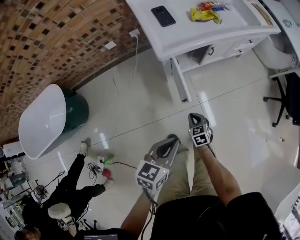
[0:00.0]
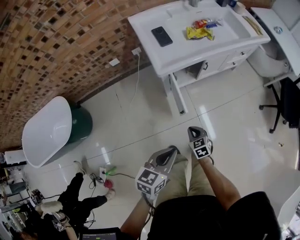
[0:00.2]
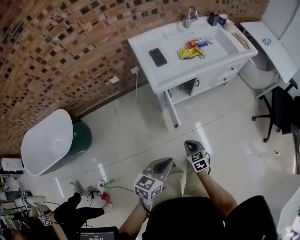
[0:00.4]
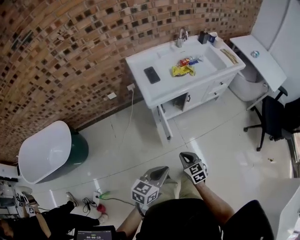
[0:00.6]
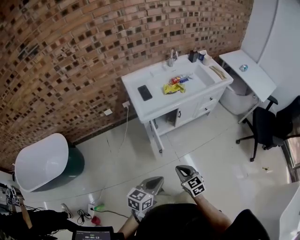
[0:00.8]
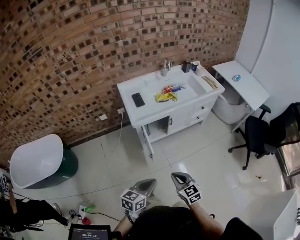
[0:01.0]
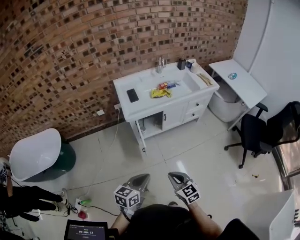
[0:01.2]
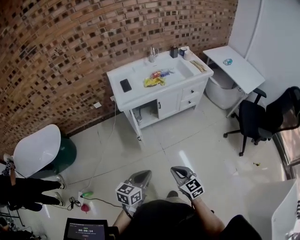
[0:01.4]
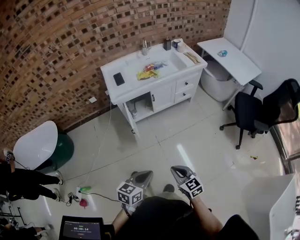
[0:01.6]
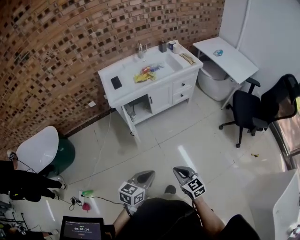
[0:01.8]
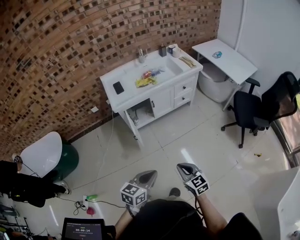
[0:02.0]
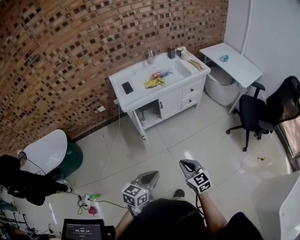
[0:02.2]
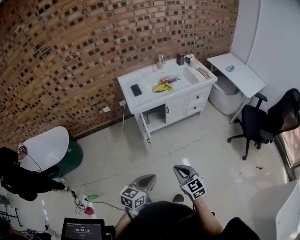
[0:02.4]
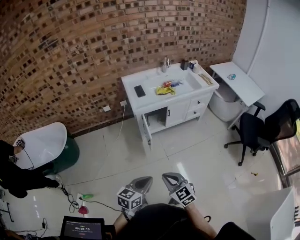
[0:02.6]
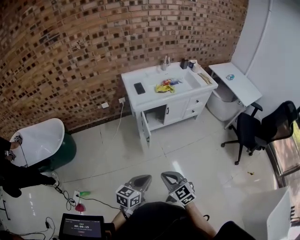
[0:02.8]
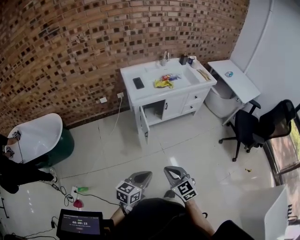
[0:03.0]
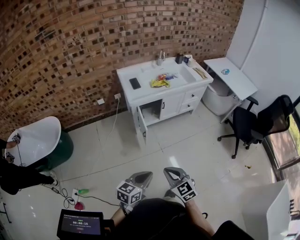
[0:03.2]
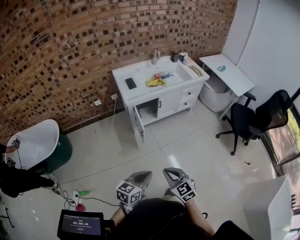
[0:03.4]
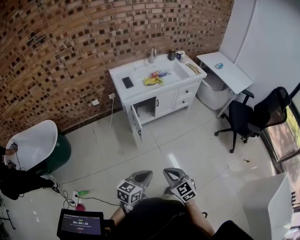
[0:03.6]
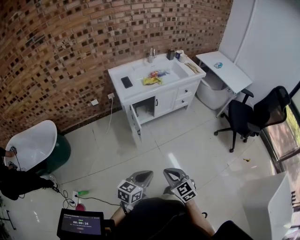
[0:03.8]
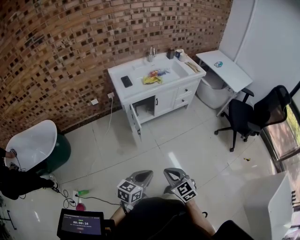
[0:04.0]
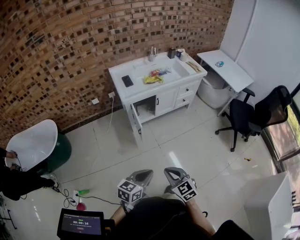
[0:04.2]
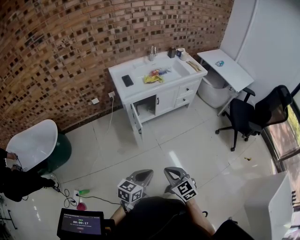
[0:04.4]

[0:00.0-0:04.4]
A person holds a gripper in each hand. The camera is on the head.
0.0 to 1.4 s: The left gripper goes some 30 cm to the right, upward and backward. The right gripper is displaced upward, to the right and backward by roughly 50 cm, and swivels roughly 30 degrees.
1.4 to 3.0 s: The left gripper travels backward and to the left by approximately 15 cm. The right gripper travels to the left, backward and upward by some 15 cm.
3.0 to 4.4 s: There are only small adjustments of the grippers.

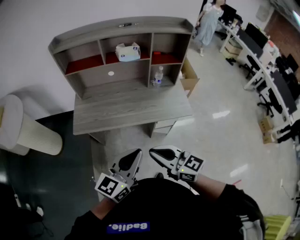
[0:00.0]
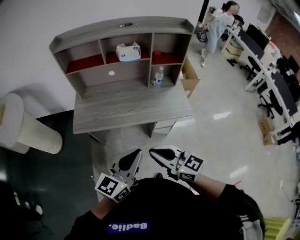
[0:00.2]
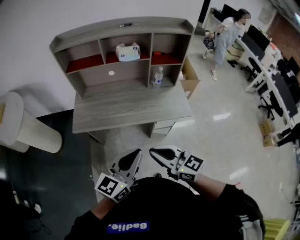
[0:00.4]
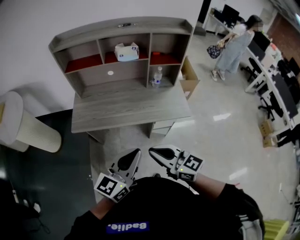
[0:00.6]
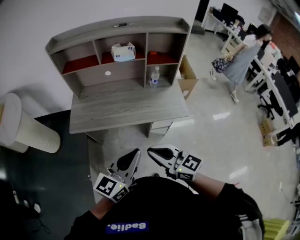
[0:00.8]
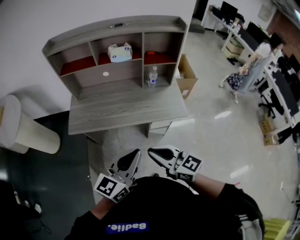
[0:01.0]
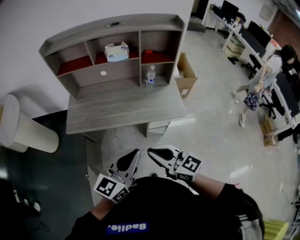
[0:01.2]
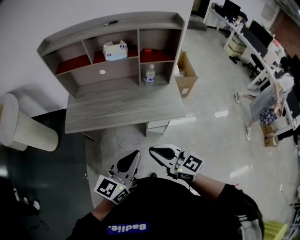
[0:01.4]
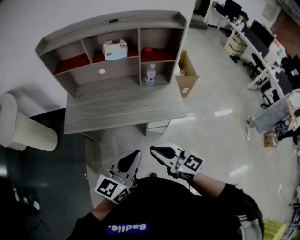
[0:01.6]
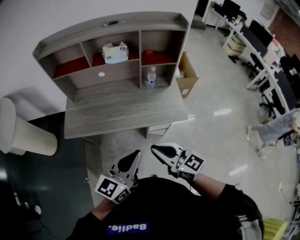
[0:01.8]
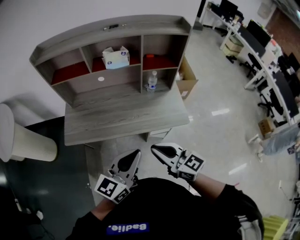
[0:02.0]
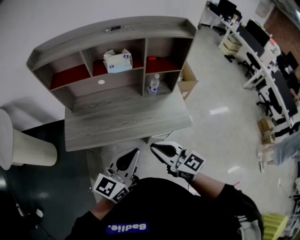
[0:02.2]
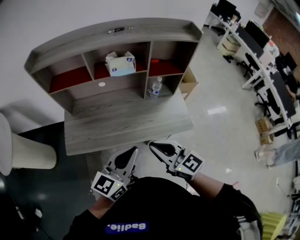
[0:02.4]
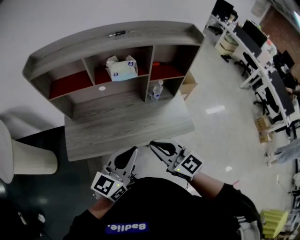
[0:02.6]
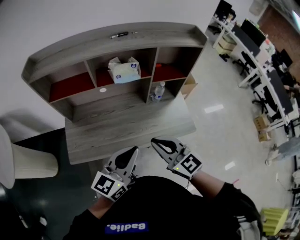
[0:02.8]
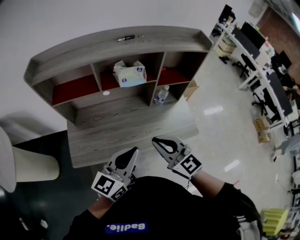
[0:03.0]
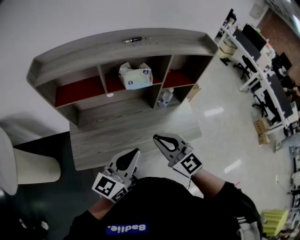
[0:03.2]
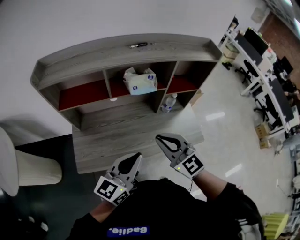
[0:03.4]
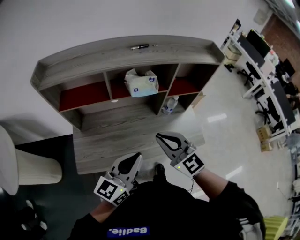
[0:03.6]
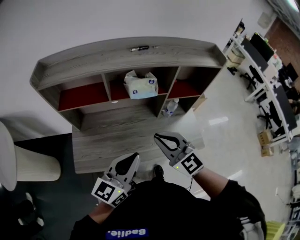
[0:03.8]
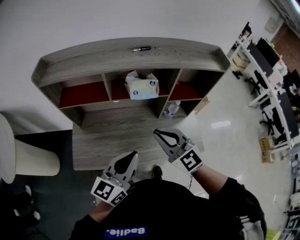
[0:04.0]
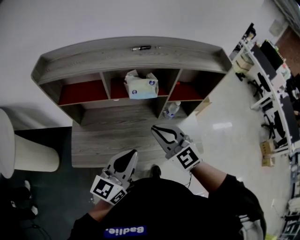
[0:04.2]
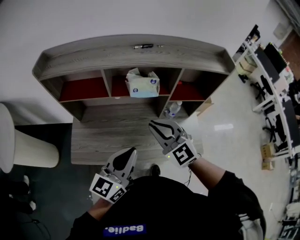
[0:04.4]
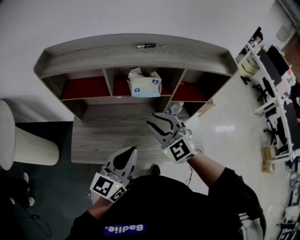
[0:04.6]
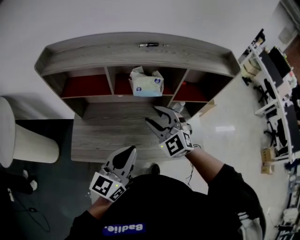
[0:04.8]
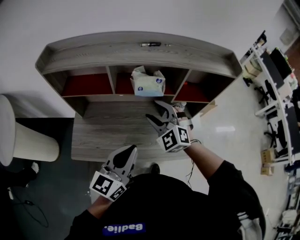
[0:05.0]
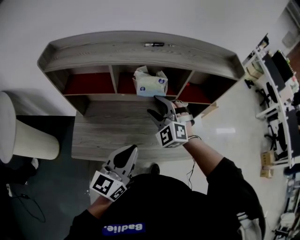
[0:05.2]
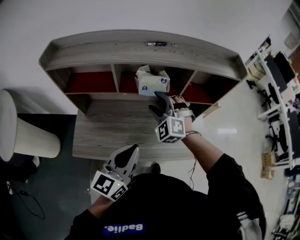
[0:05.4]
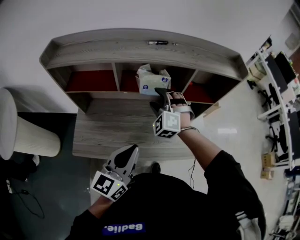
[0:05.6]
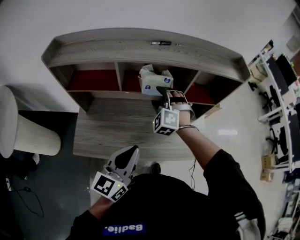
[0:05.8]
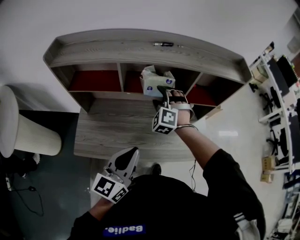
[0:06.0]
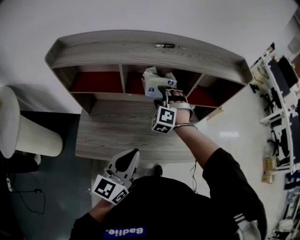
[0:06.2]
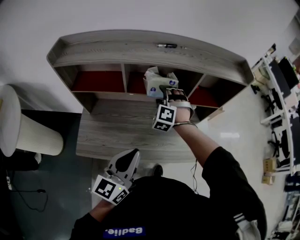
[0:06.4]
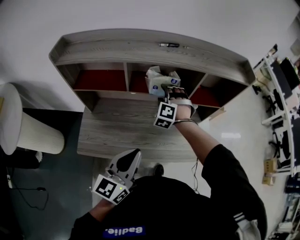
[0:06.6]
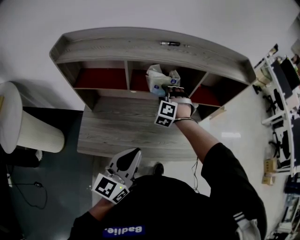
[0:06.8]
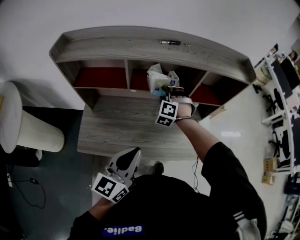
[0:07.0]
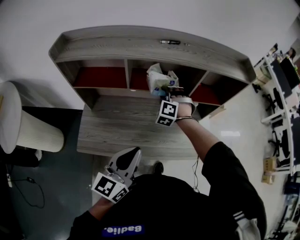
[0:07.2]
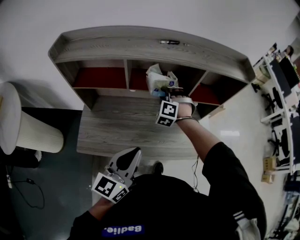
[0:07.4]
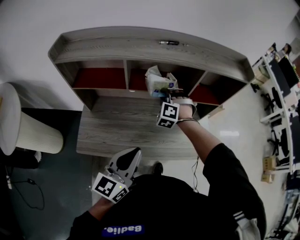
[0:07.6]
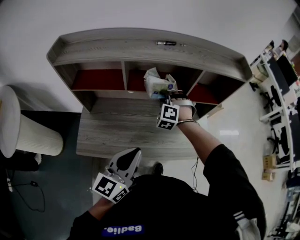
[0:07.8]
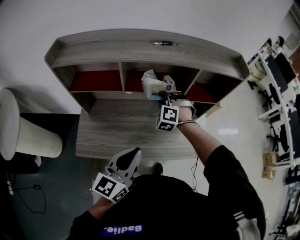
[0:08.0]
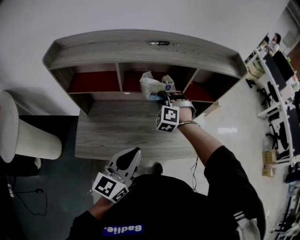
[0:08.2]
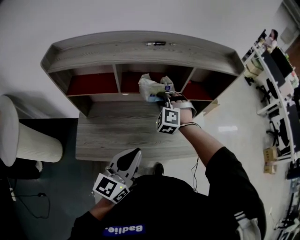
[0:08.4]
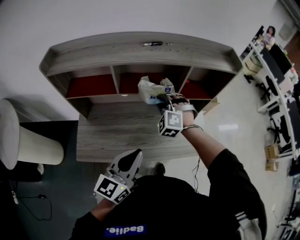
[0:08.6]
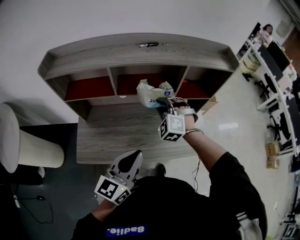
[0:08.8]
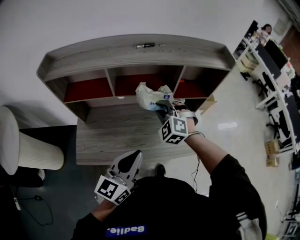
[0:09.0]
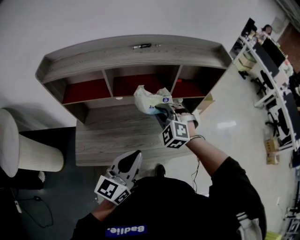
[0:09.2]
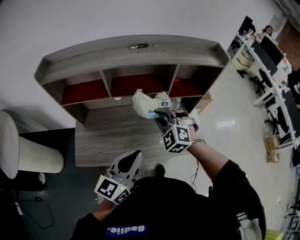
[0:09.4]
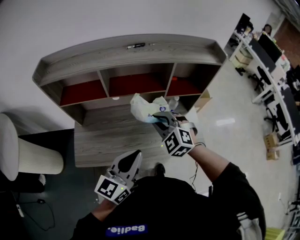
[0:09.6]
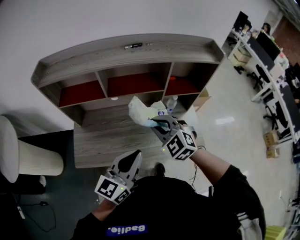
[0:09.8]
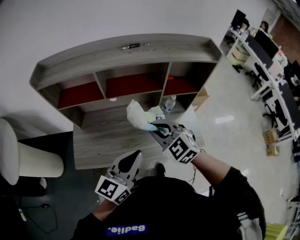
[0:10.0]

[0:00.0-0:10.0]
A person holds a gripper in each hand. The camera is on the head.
0.0 to 1.4 s: Both grippers move to the right, about 10 cm.
1.4 to 2.8 s: The right gripper shifts about 20 cm forward, and swivels about 20 degrees. Meanwhile the left gripper shifts roughly 20 cm forward and to the left.
2.8 to 4.2 s: The left gripper shifts roughly 5 cm forward. Meanwhile the right gripper goes some 10 cm forward.
4.2 to 5.8 s: The right gripper travels forward and downward by roughly 20 cm, changes its angle by approximately 50 degrees, and opens its fingers.
5.8 to 7.2 s: The right gripper shifts by some 5 cm, and closes its fingers.
7.2 to 8.6 s: The right gripper moves about 5 cm.
8.6 to 10.0 s: The right gripper moves backward, about 15 cm, and changes its angle by about 40 degrees.

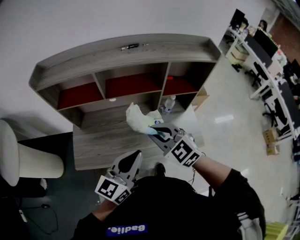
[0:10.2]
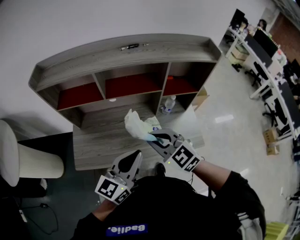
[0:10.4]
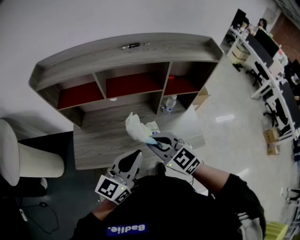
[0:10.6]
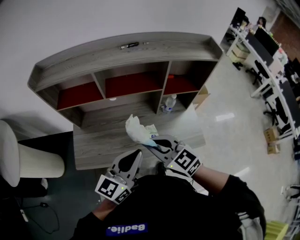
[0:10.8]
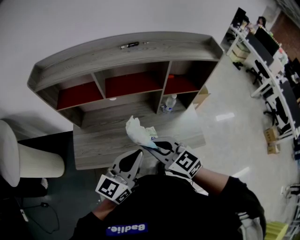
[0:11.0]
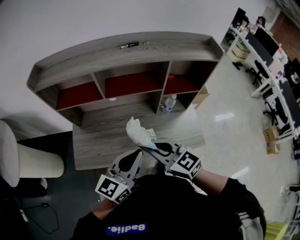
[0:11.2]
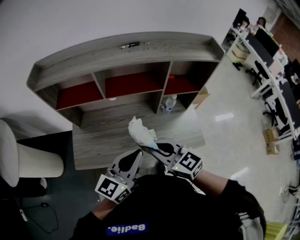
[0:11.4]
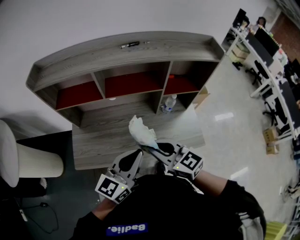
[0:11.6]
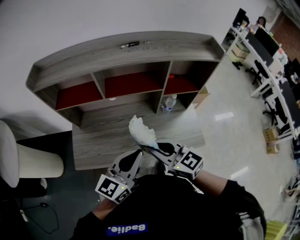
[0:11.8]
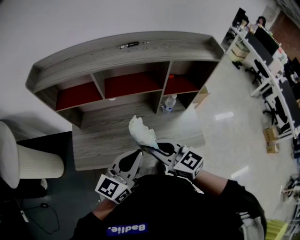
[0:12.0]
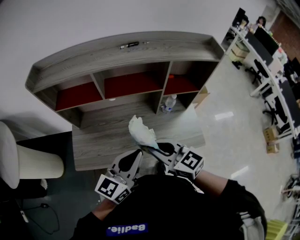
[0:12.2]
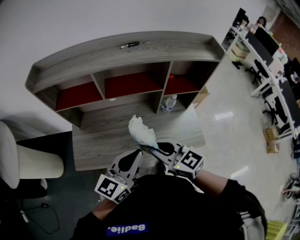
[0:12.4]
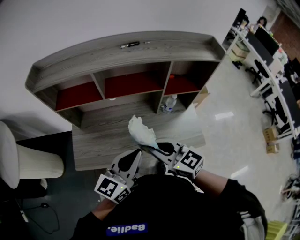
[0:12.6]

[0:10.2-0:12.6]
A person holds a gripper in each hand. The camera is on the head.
10.2 to 11.4 s: The right gripper changes place by some 5 cm, and rotates some 30 degrees.
11.4 to 12.6 s: Both grippers stay put.

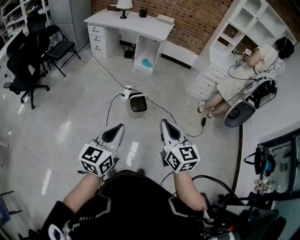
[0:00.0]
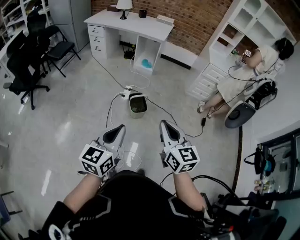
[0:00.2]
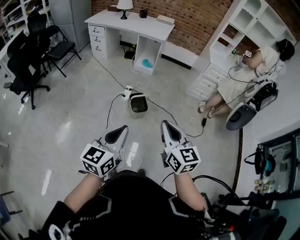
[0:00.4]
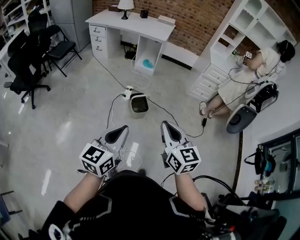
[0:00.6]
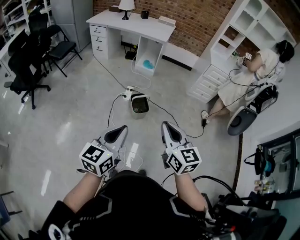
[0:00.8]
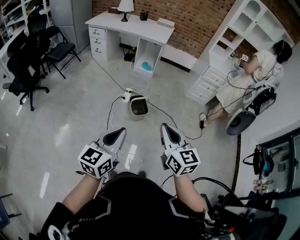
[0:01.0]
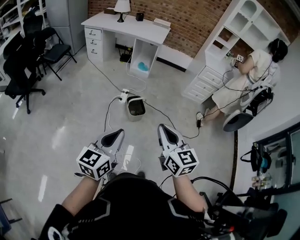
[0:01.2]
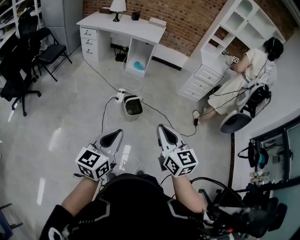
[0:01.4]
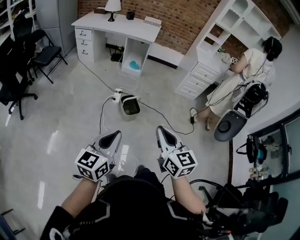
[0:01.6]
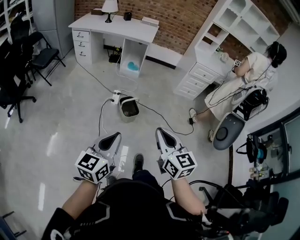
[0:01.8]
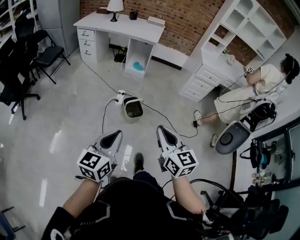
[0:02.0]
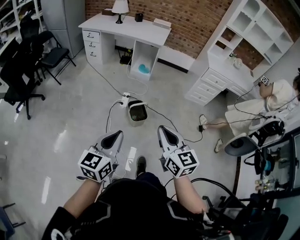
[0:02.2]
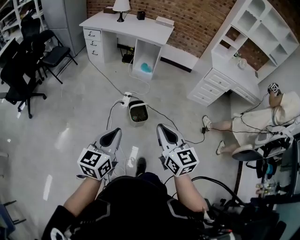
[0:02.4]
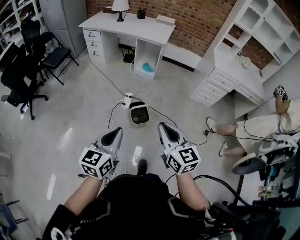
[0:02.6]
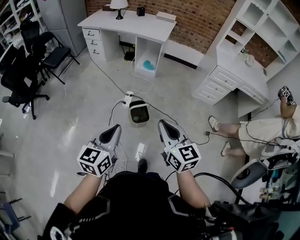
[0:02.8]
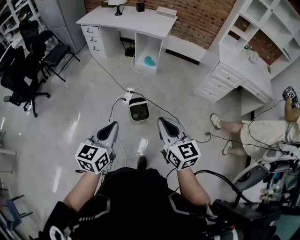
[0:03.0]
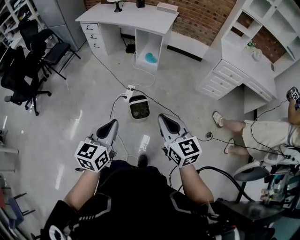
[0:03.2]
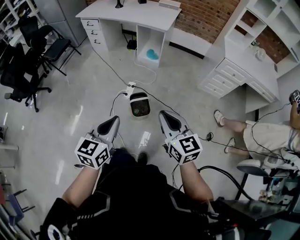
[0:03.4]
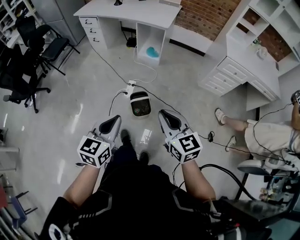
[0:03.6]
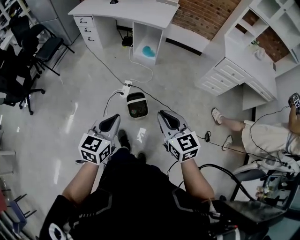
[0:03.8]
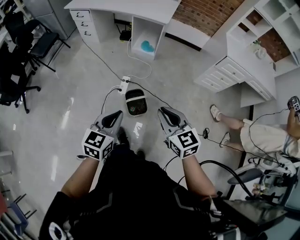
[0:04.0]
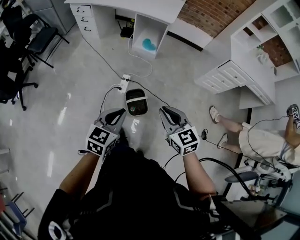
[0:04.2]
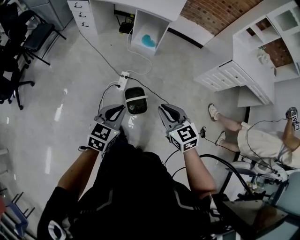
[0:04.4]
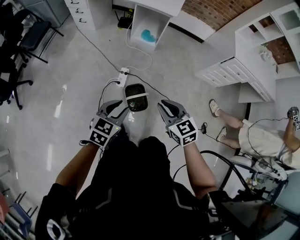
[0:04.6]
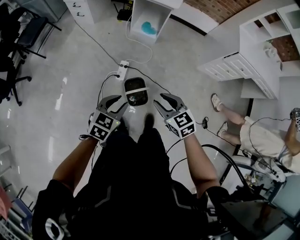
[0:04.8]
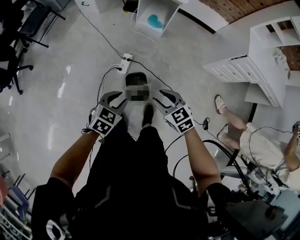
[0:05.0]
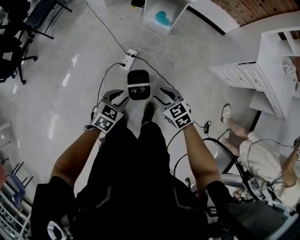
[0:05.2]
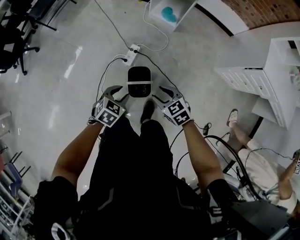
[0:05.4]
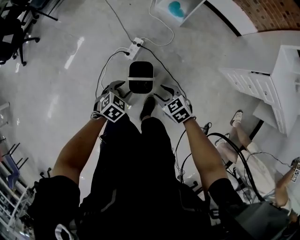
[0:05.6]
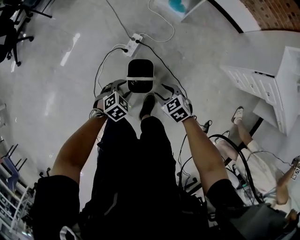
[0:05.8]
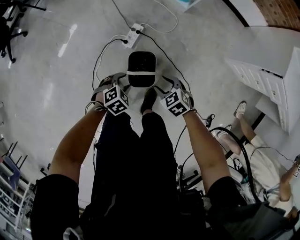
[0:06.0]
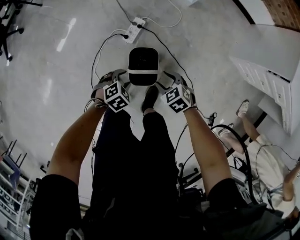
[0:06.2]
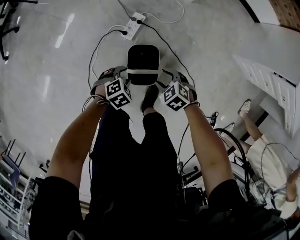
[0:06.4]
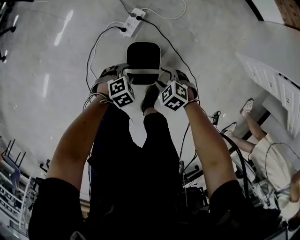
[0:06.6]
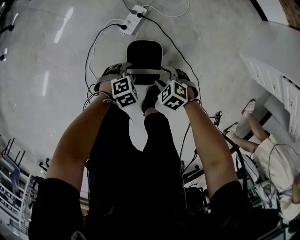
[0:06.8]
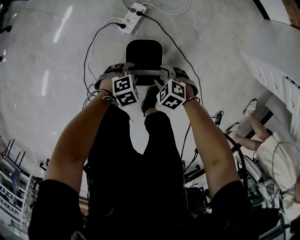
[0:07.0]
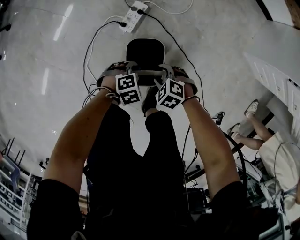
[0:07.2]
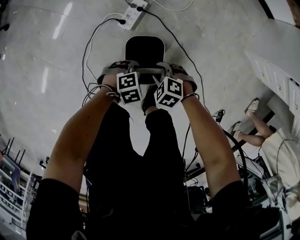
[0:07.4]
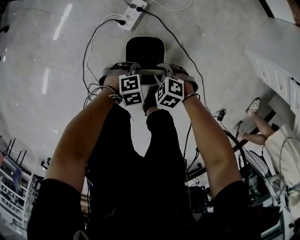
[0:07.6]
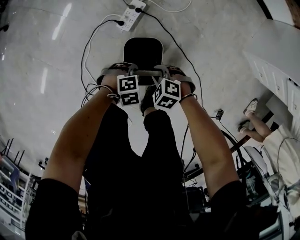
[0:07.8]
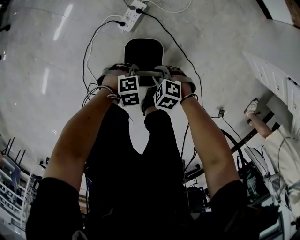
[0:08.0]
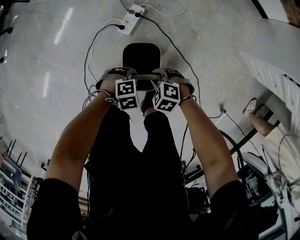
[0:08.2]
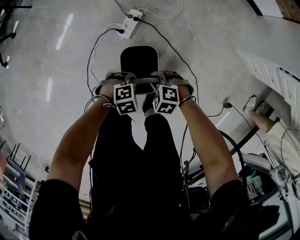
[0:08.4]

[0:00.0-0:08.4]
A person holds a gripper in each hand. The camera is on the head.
0.0 to 1.4 s: Both grippers travel together to the left, about 5 cm.
1.4 to 2.8 s: The right gripper is displaced forward and to the right by approximately 20 cm. The left gripper shifts approximately 20 cm forward.
2.8 to 4.2 s: Both grippers move forward and downward, about 25 cm.
4.2 to 5.6 s: The grippers both shift downward and forward by roughly 30 cm. The left gripper tilts its fingers about 40 degrees downward, and opens its fingers; the right gripper rotates roughly 40 degrees, and opens its fingers.
5.6 to 7.0 s: The grippers both shift downward by some 30 cm. The right gripper rotates approximately 30 degrees, while the left gripper turns by approximately 30 degrees.
7.0 to 8.4 s: Both grippers move upward, some 5 cm. The right gripper closes its fingers. The left gripper closes its fingers.
